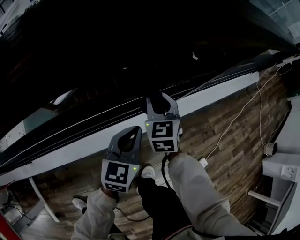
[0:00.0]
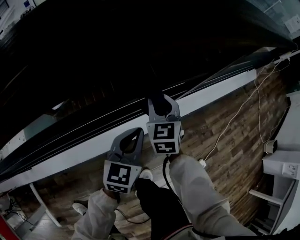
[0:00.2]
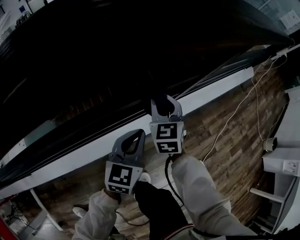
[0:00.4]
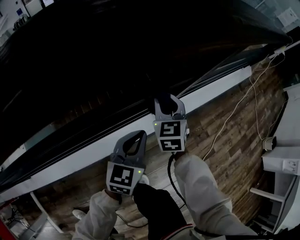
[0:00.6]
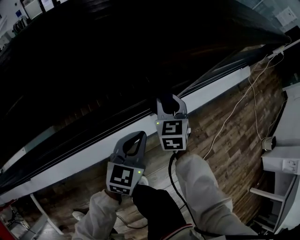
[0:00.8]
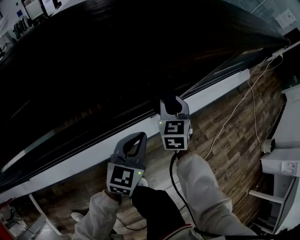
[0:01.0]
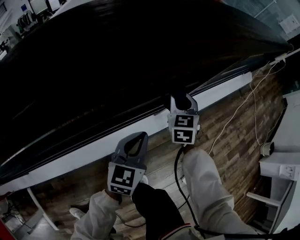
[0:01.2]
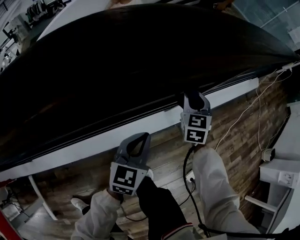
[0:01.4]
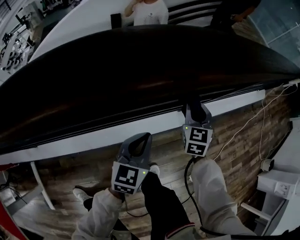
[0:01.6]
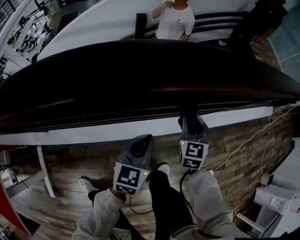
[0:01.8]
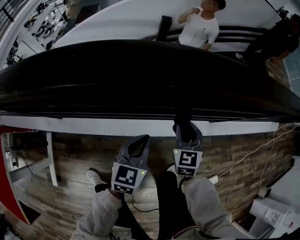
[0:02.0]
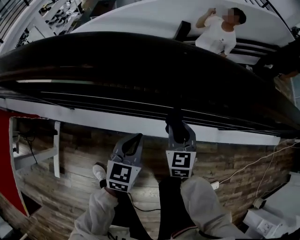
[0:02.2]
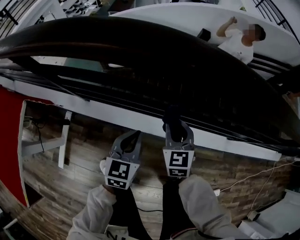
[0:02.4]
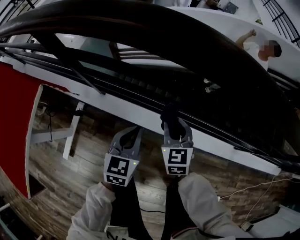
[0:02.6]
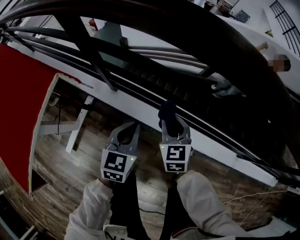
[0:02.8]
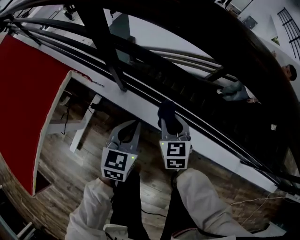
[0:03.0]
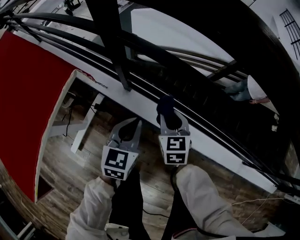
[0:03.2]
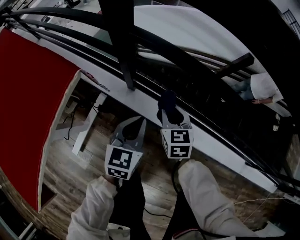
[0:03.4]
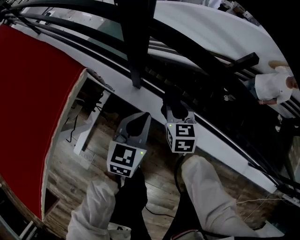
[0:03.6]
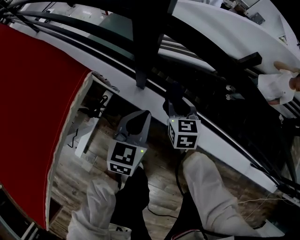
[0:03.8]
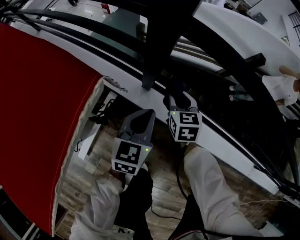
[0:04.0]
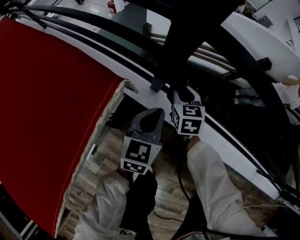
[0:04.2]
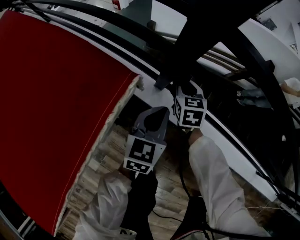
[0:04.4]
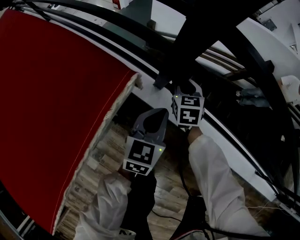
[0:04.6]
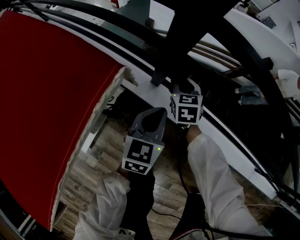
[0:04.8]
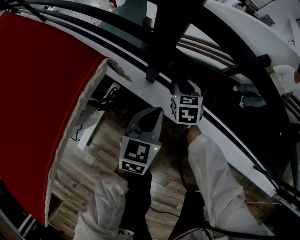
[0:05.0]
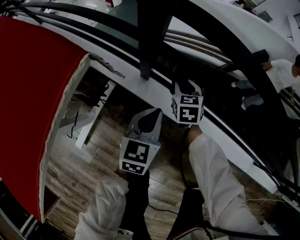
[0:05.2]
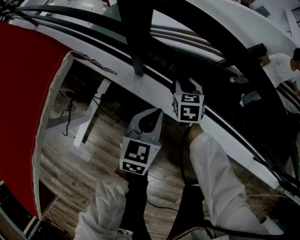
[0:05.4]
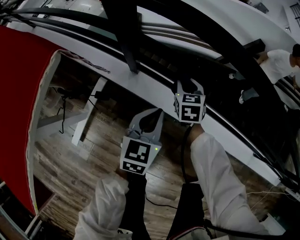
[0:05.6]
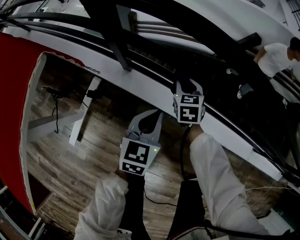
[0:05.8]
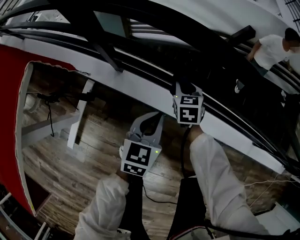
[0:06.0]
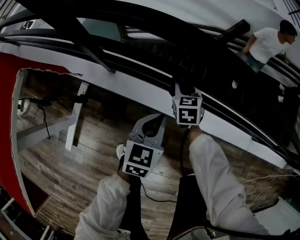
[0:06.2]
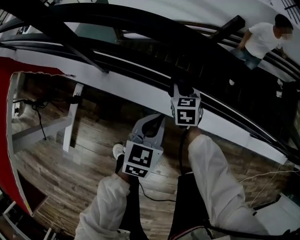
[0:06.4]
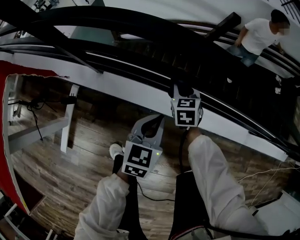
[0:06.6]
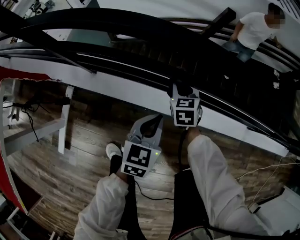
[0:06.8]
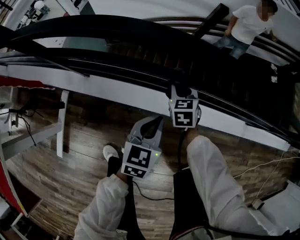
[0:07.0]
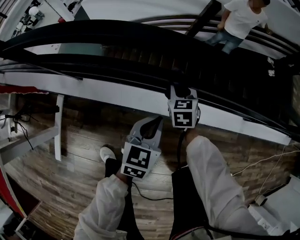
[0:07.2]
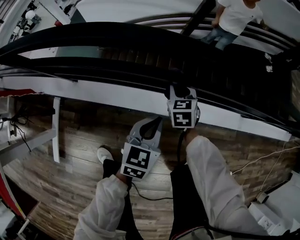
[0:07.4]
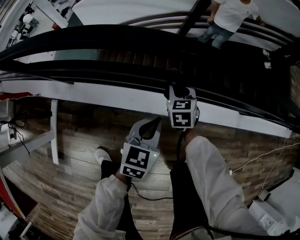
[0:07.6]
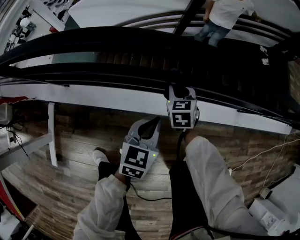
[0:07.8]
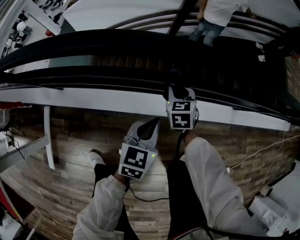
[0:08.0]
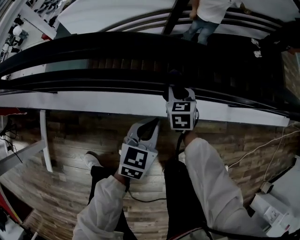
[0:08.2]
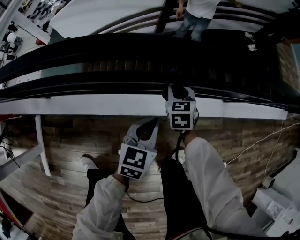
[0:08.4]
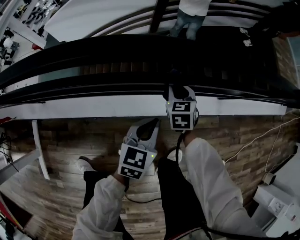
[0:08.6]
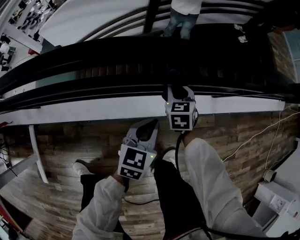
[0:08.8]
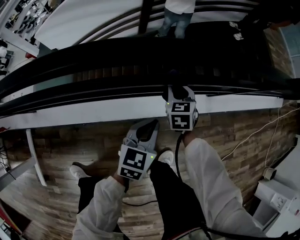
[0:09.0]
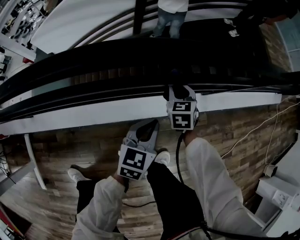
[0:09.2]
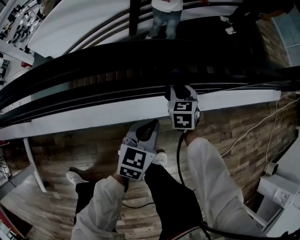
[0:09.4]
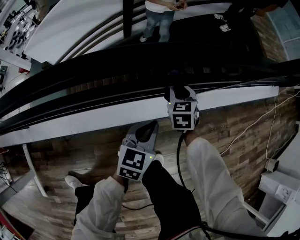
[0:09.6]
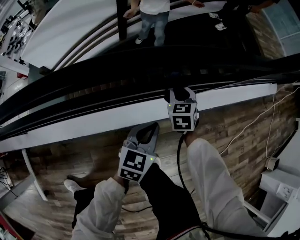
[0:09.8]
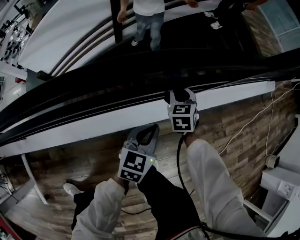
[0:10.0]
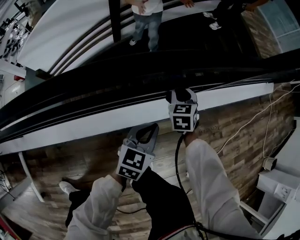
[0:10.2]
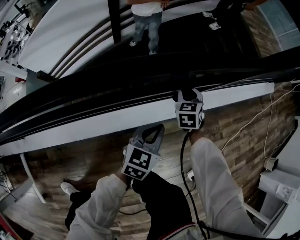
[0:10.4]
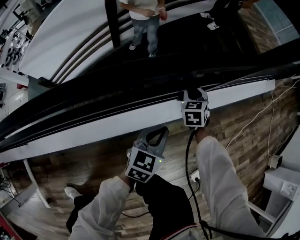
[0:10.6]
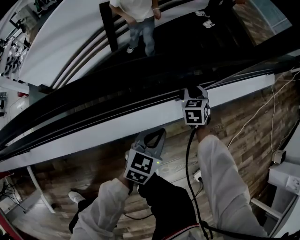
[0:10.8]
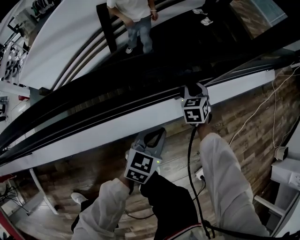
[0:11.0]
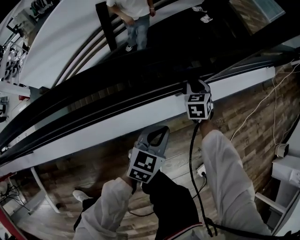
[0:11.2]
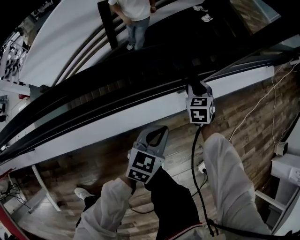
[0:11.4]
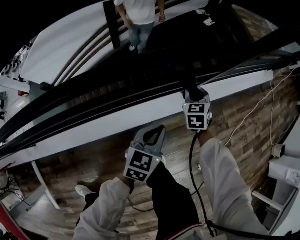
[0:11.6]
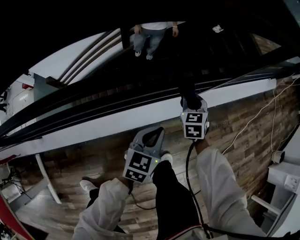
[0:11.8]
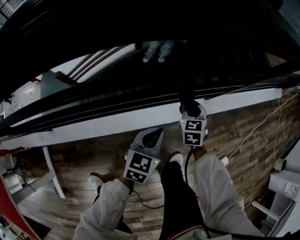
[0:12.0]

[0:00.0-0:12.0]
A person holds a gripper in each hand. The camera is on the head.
0:00.0 to 0:01.6: The left gripper travels backward and to the left by approximately 5 cm, while the right gripper travels to the right and back again, approximately 15 cm each way.
0:01.6 to 0:03.0: Both grippers are carried roughly 80 cm. The right gripper turns by approximately 60 degrees. The left gripper swivels some 50 degrees.
0:03.0 to 0:04.4: The left gripper moves to the left, downward and forward, some 20 cm; the right gripper goes about 30 cm to the left, forward and downward.
0:04.4 to 0:06.0: The grippers both shift to the right by approximately 25 cm.
0:06.0 to 0:07.6: Both grippers move to the right, approximately 30 cm.
0:07.6 to 0:09.0: The grippers both shift to the right by approximately 30 cm.
0:09.0 to 0:10.4: Both grippers move to the right and forward, approximately 25 cm.
0:10.4 to 0:12.0: Both grippers move backward, to the left and upward, approximately 25 cm.

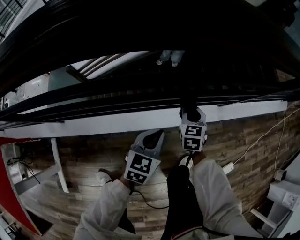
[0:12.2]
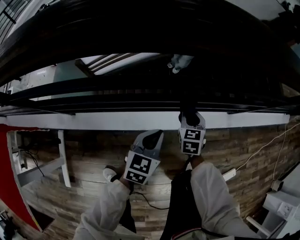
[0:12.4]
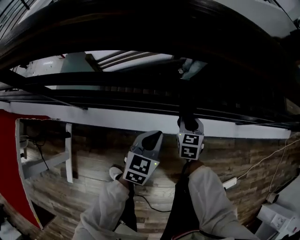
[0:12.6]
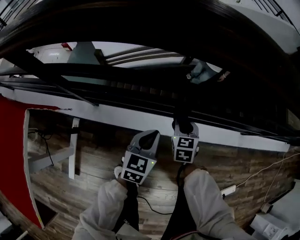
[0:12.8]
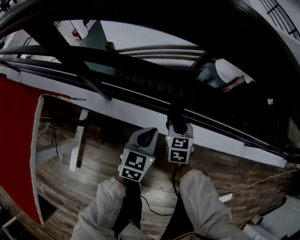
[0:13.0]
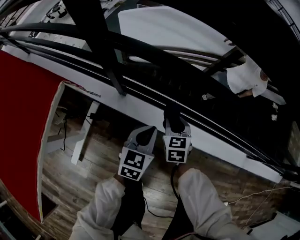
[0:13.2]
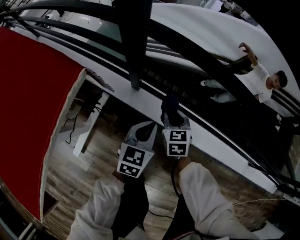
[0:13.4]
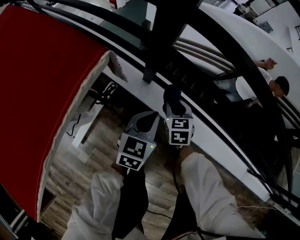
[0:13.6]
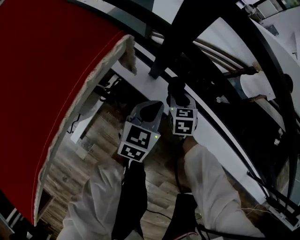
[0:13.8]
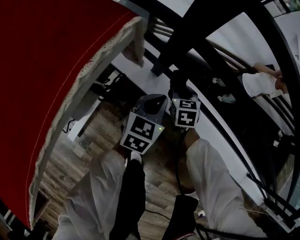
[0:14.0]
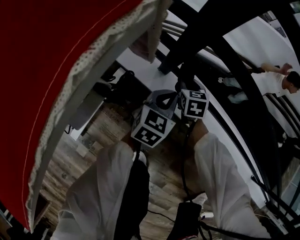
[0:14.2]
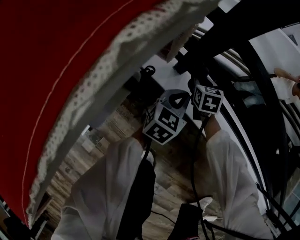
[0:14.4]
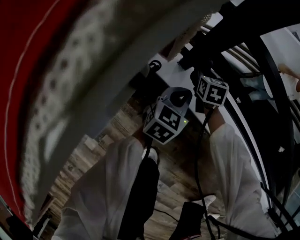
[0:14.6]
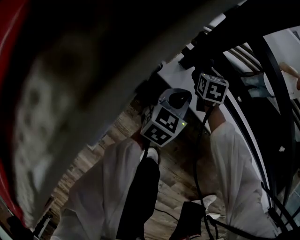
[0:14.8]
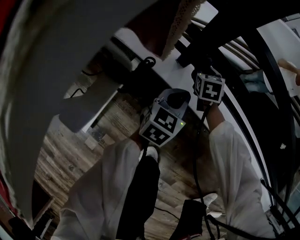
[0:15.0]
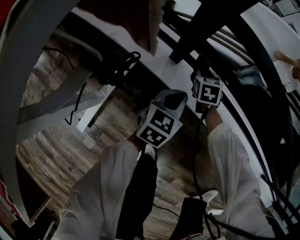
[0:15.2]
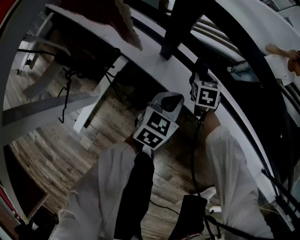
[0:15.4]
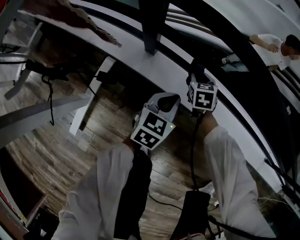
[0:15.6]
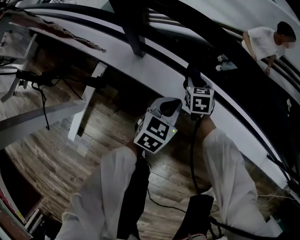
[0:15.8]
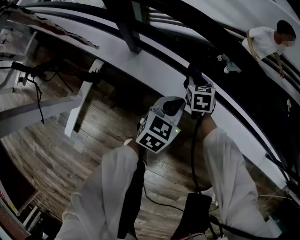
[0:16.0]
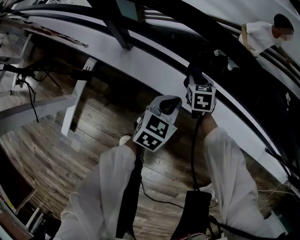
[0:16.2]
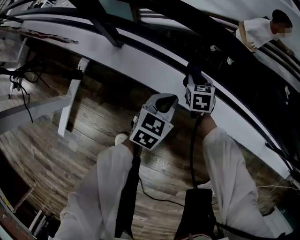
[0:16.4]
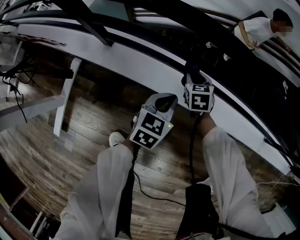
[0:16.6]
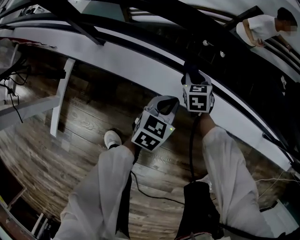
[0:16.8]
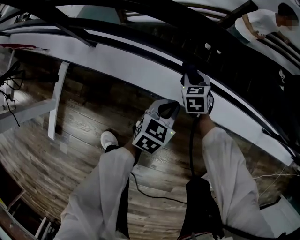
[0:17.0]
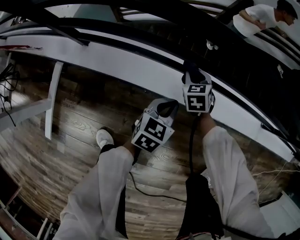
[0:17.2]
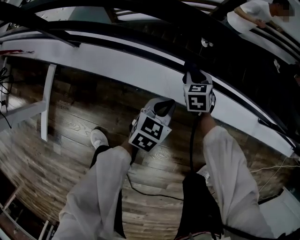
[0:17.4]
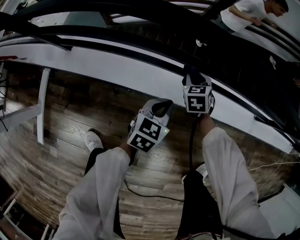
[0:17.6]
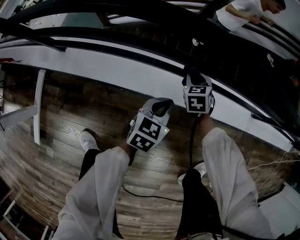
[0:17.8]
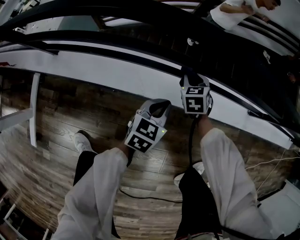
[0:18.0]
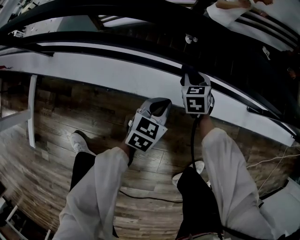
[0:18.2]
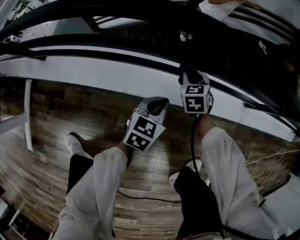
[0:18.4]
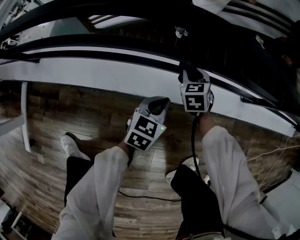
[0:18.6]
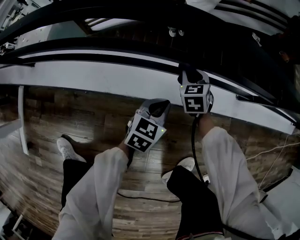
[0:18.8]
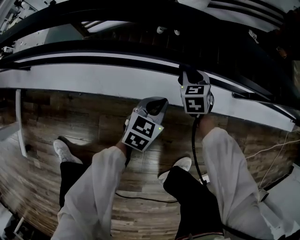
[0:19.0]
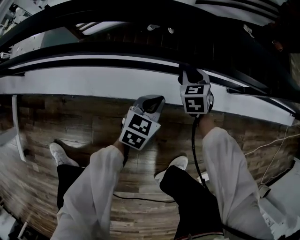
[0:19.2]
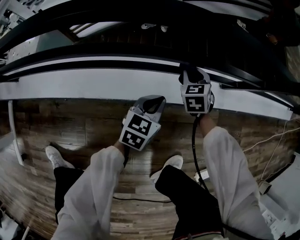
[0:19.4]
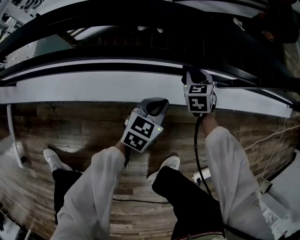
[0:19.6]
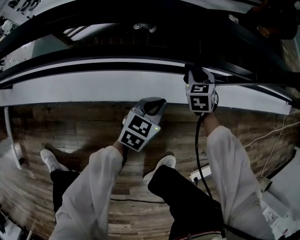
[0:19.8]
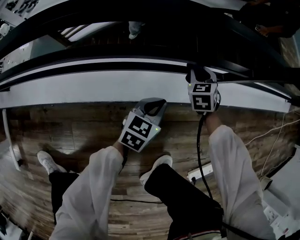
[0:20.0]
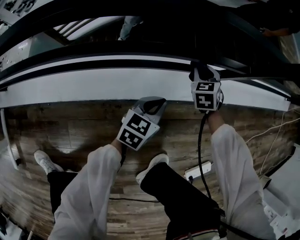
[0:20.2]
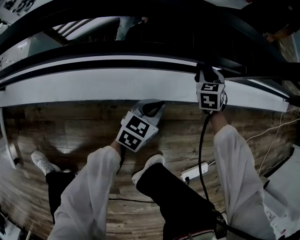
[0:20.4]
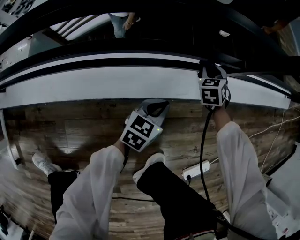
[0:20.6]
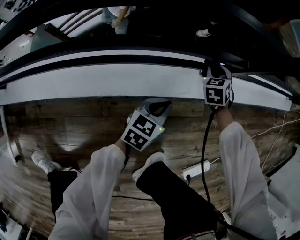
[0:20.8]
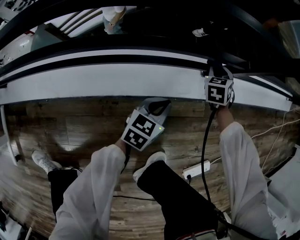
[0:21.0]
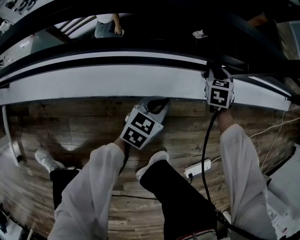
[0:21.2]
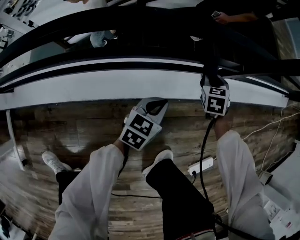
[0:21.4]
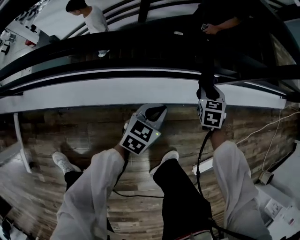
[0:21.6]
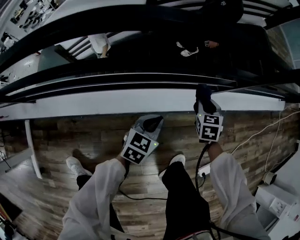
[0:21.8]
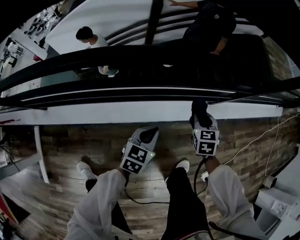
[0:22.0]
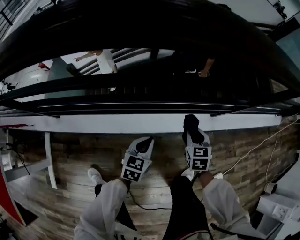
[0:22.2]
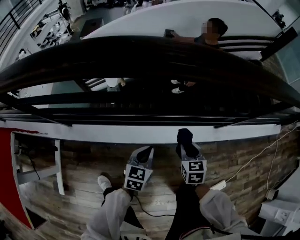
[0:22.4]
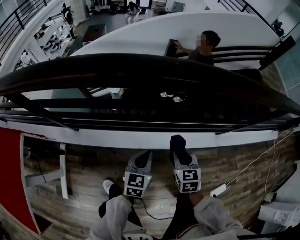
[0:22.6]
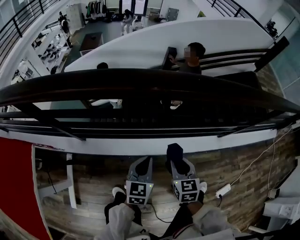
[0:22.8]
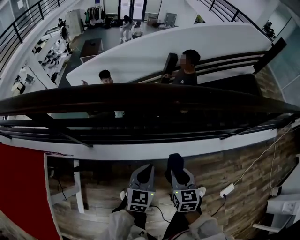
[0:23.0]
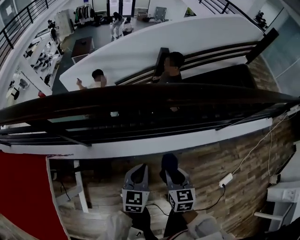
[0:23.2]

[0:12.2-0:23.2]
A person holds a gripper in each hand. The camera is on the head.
0:12.2 to 0:13.8: The two grippers travel together, approximately 70 cm. The left gripper turns by some 40 degrees, while the right gripper rotates approximately 50 degrees.
0:13.8 to 0:15.4: Both grippers move downward and to the right, about 15 cm.
0:15.4 to 0:17.0: Both grippers move to the right, approximately 35 cm.
0:17.0 to 0:18.4: The two grippers go approximately 25 cm to the right.
0:18.4 to 0:20.0: Both grippers travel together to the right, roughly 30 cm.
0:20.0 to 0:21.6: Both grippers move upward, some 10 cm.
0:21.6 to 0:23.2: The two grippers travel together, roughly 60 cm. The right gripper rotates about 20 degrees. Meanwhile the left gripper turns by roughly 20 degrees.

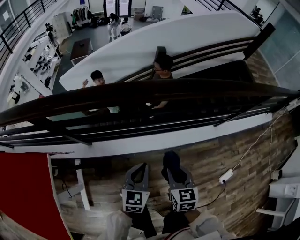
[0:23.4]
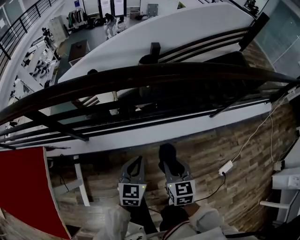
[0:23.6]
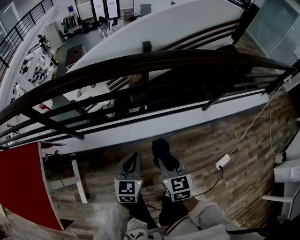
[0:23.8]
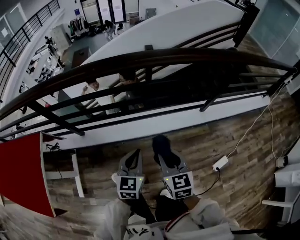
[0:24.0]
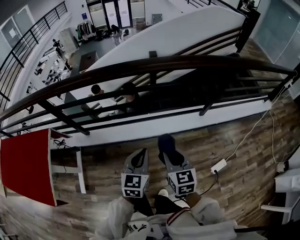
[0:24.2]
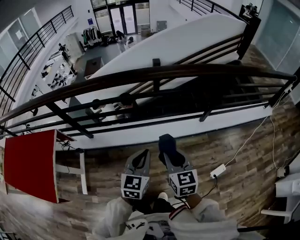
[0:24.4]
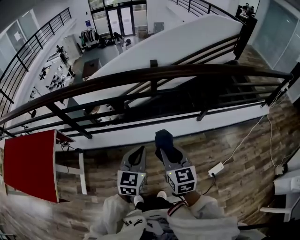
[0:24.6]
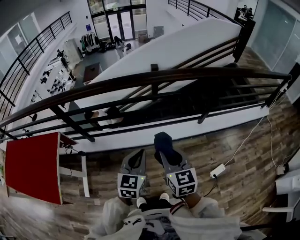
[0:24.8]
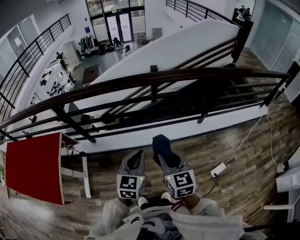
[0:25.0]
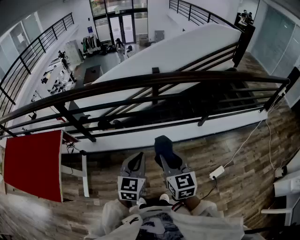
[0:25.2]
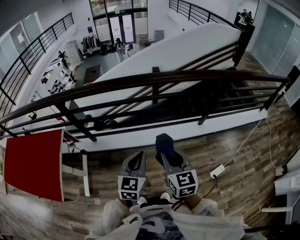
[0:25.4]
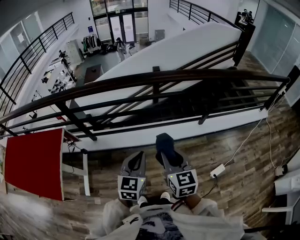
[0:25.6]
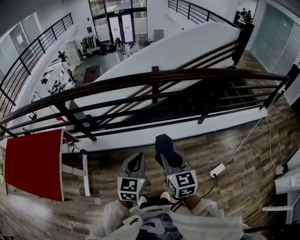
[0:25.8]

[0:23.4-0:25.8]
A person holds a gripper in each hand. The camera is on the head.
0:23.4 to 0:24.6: The left gripper goes about 35 cm to the right, upward and backward. The right gripper travels upward, to the right and backward by roughly 35 cm.
0:24.6 to 0:25.8: The grippers both shift backward by some 5 cm.
